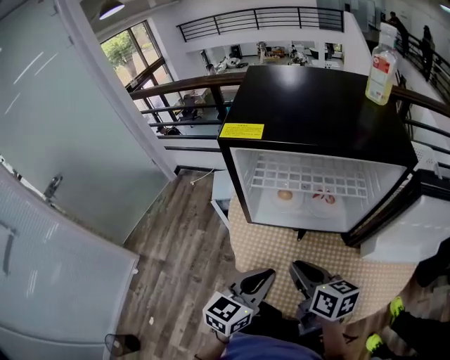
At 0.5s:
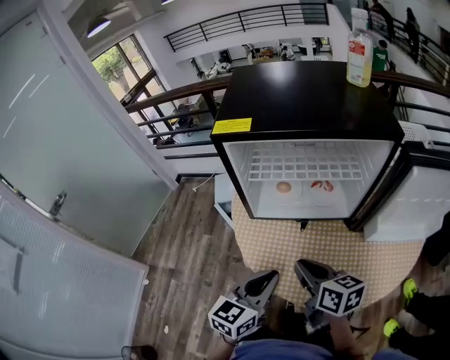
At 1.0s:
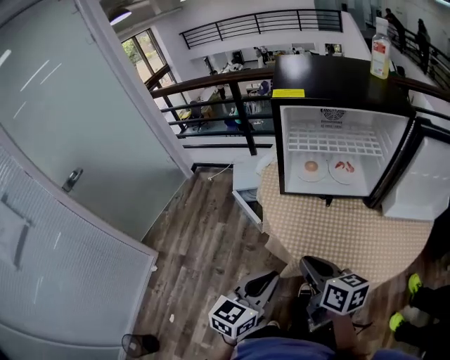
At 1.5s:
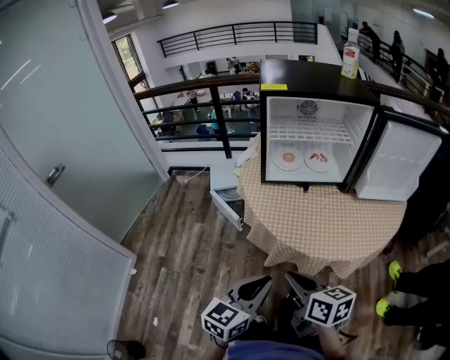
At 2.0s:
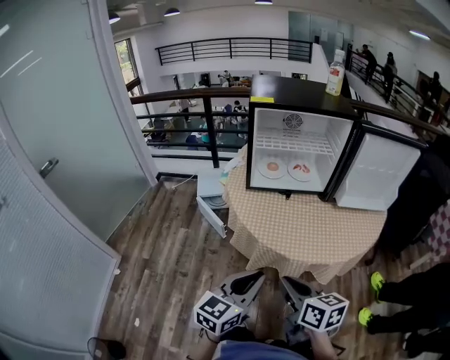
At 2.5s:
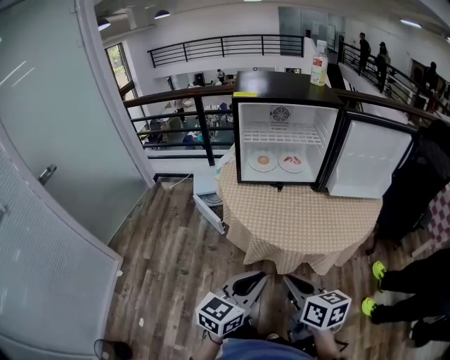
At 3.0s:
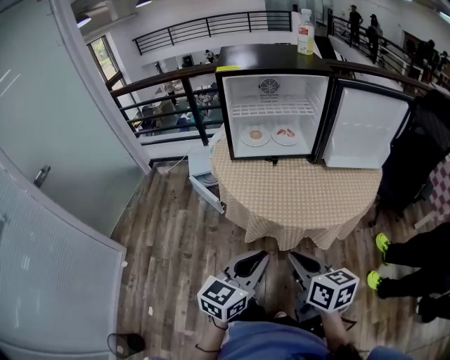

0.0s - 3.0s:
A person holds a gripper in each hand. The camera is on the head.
0.0s - 1.5s: The two grippers go some 30 cm backward and to the left.
1.5s - 3.0s: The right gripper shifts roughly 10 cm to the right and backward, while the left gripper shifts about 10 cm to the right.

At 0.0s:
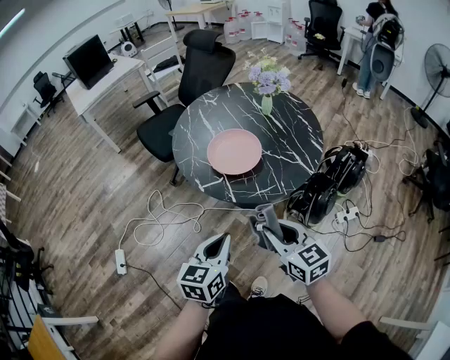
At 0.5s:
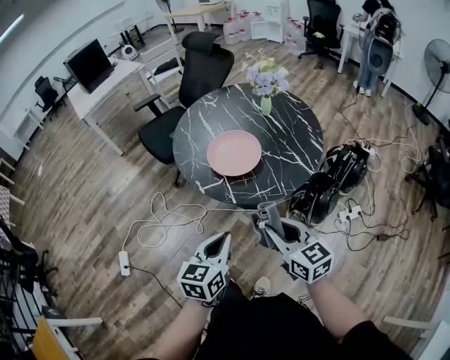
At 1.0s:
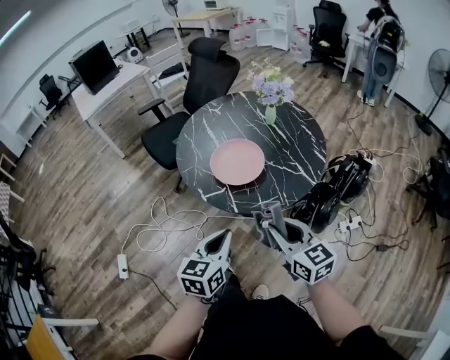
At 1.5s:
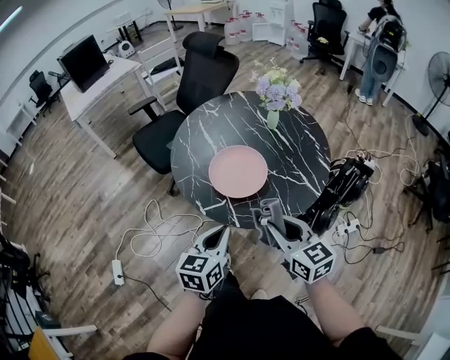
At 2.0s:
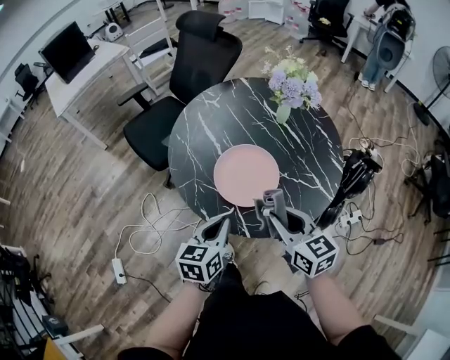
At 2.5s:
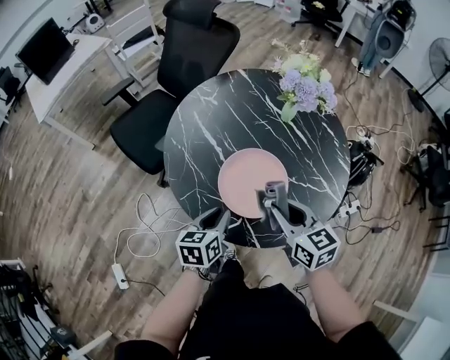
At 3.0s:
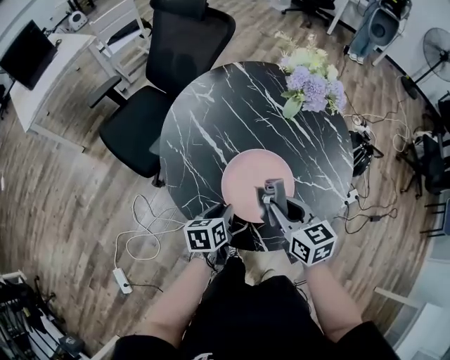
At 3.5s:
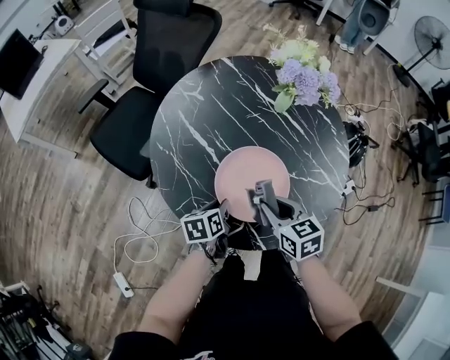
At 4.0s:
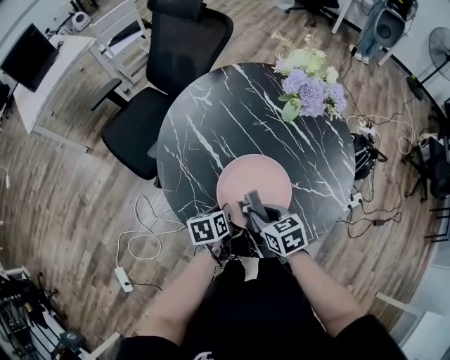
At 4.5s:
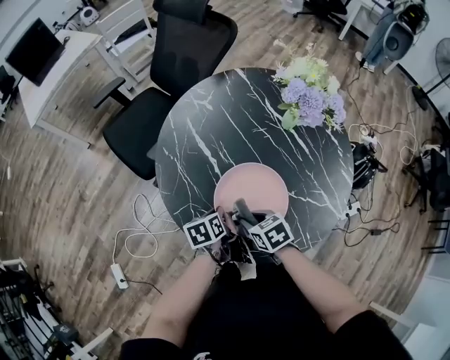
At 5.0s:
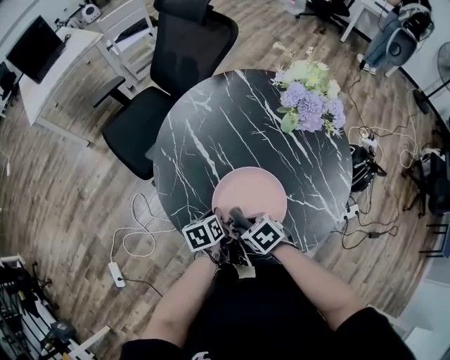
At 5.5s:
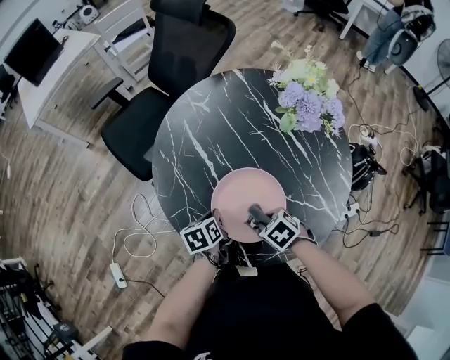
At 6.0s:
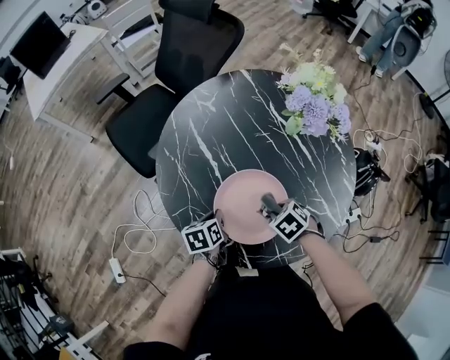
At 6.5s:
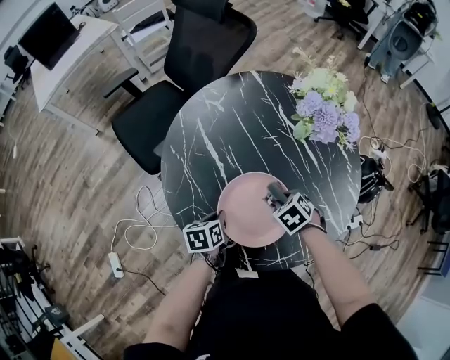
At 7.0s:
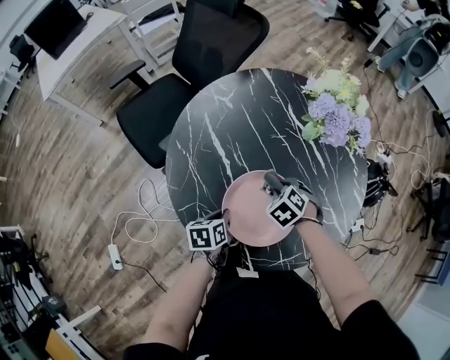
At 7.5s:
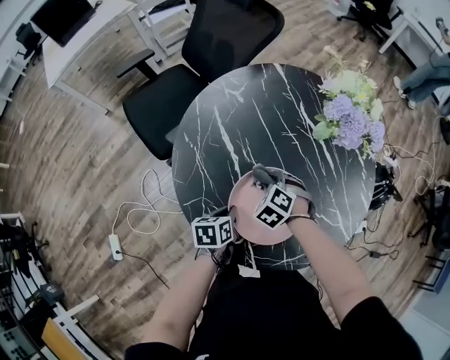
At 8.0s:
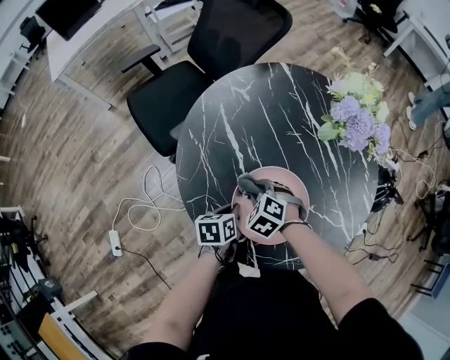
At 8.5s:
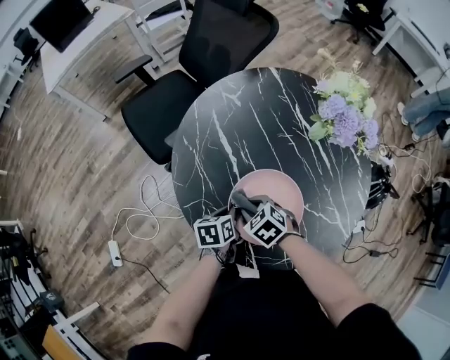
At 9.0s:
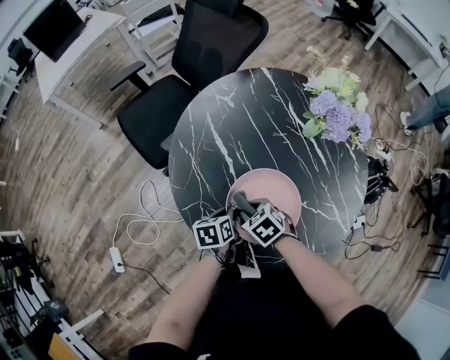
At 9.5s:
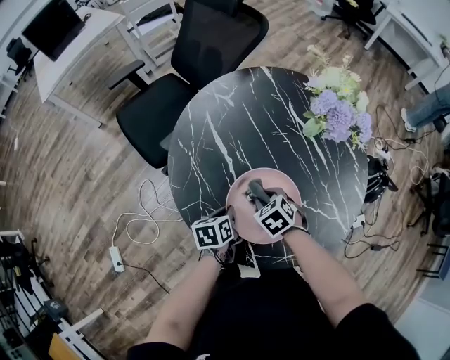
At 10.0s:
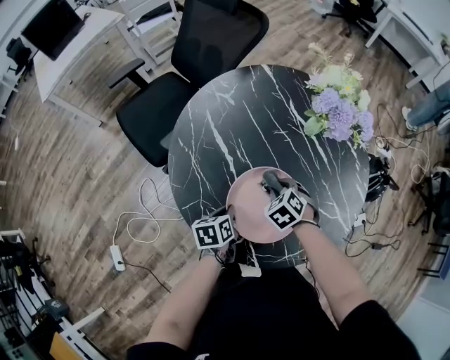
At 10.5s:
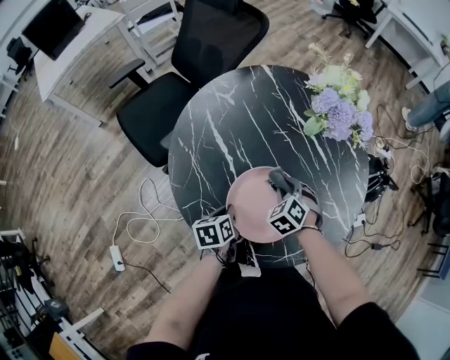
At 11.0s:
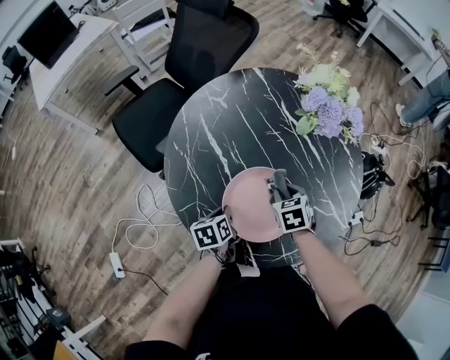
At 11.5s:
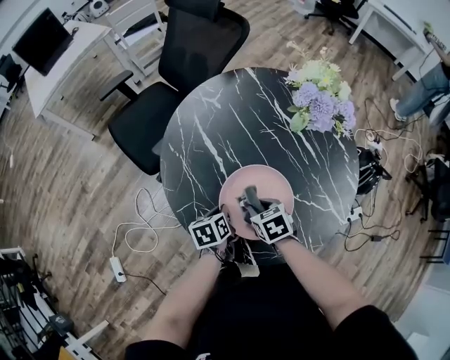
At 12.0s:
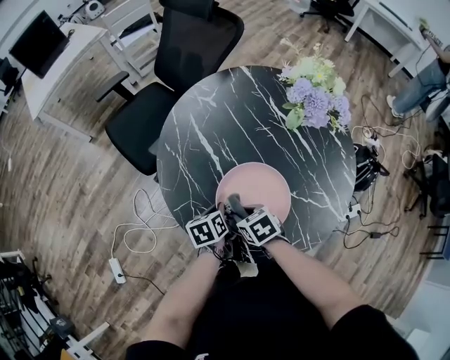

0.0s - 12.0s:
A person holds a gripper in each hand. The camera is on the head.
0.0s - 2.0s: Both grippers travel together forward, roughly 25 cm.
2.0s - 4.0s: The left gripper moves downward and forward, roughly 25 cm, and turns by some 30 degrees; the right gripper heads downward, forward and to the left, covering some 20 cm, and changes its angle by about 30 degrees.
4.0s - 6.0s: The right gripper moves about 10 cm, and changes its angle by roughly 40 degrees.
6.0s - 8.0s: The right gripper shifts by about 15 cm, and changes its angle by some 30 degrees.
8.0s - 10.0s: The right gripper moves to the right, about 10 cm, and swivels approximately 20 degrees.
10.0s - 12.0s: The right gripper ends up roughly 15 cm from where it was, and changes its angle by approximately 30 degrees.

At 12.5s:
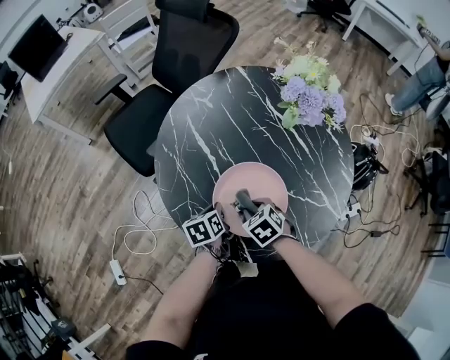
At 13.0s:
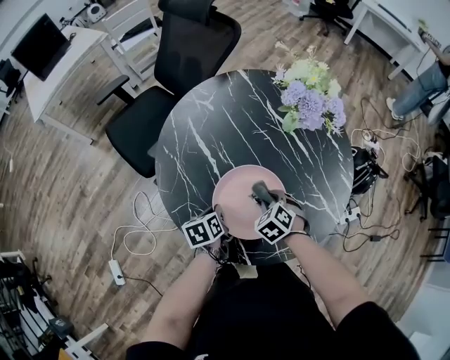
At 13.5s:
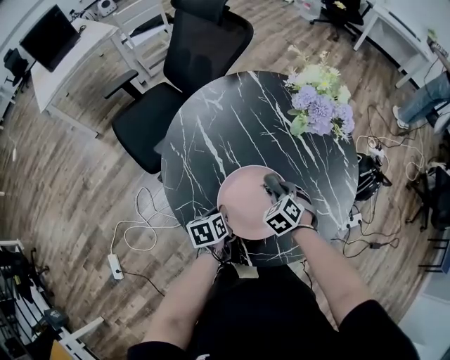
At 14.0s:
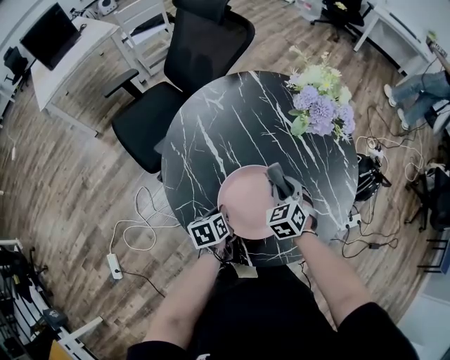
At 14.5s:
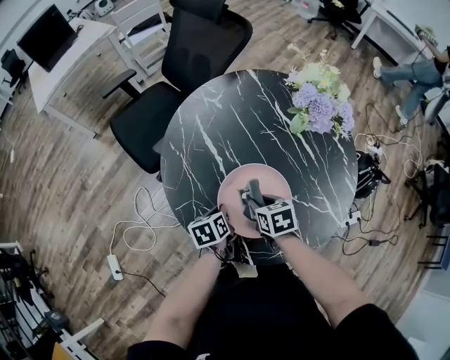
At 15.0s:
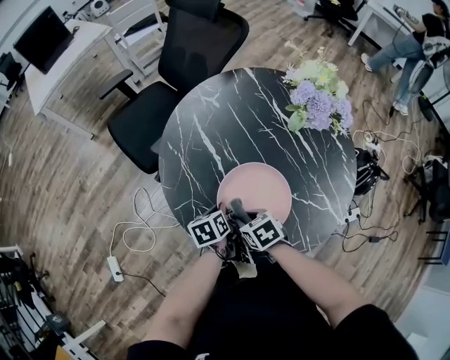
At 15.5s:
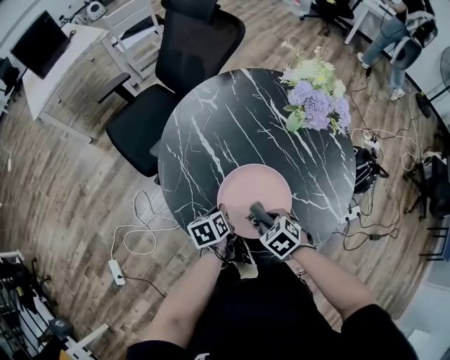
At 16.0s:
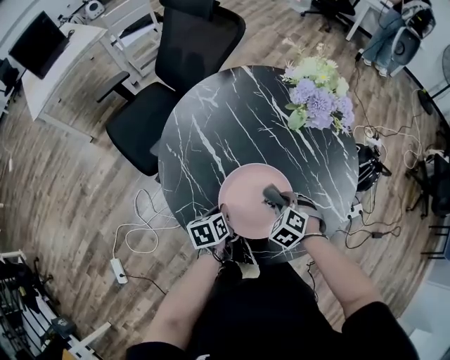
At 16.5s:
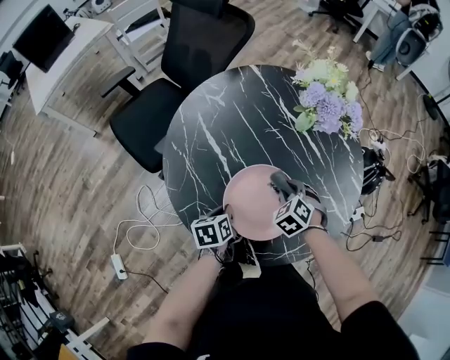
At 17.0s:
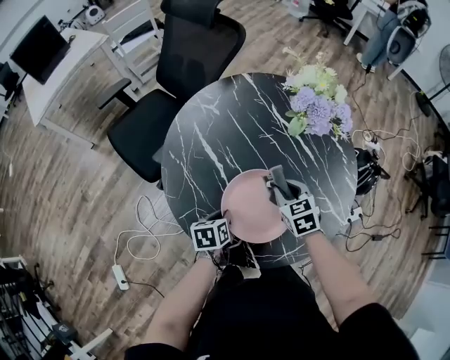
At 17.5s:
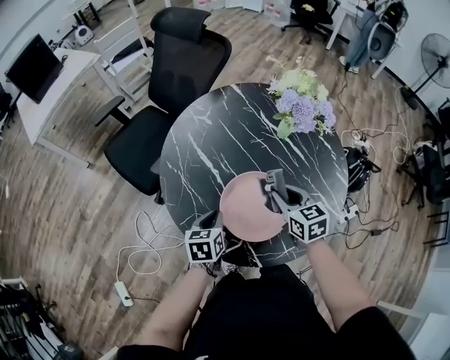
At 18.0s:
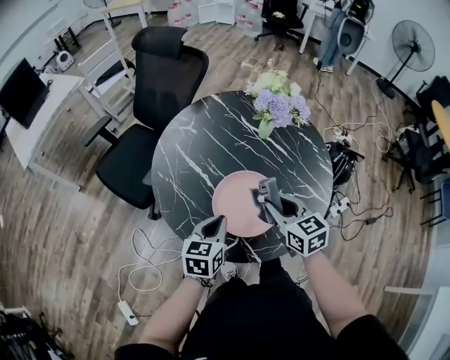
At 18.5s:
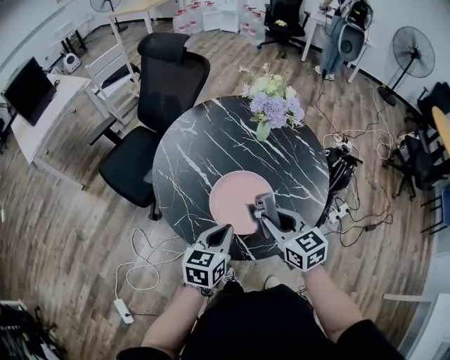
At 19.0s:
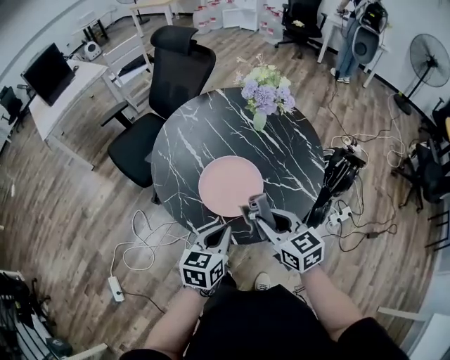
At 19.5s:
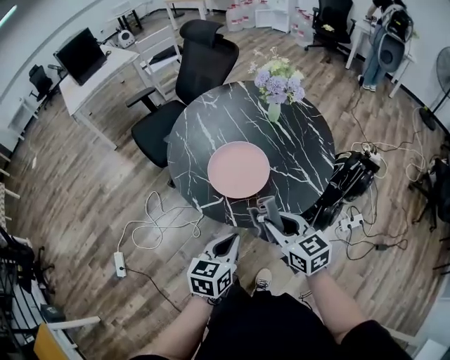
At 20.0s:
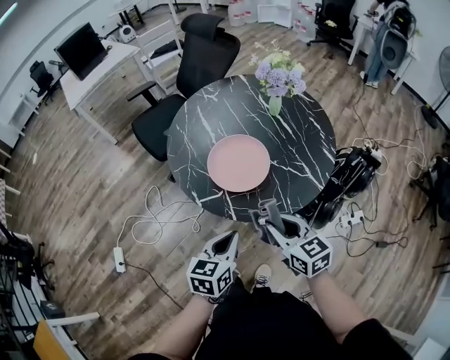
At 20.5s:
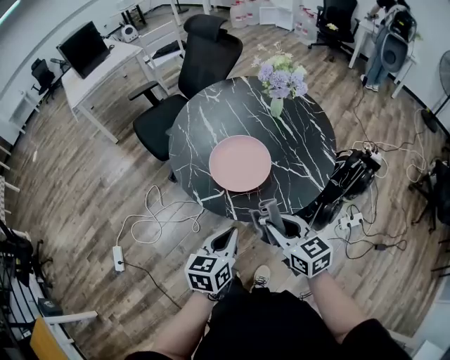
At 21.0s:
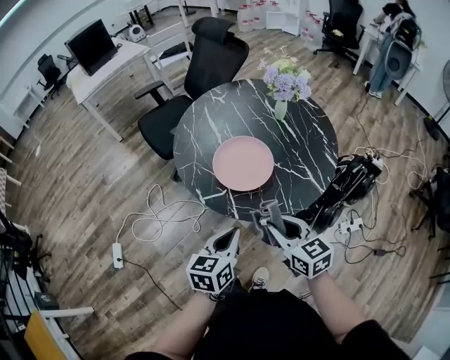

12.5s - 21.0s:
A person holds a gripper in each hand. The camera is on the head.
12.5s - 14.5s: The right gripper swivels approximately 30 degrees.
14.5s - 16.5s: The right gripper shifts by about 10 cm, and rolls counterclockwise, seen from behind, by about 40 degrees.
16.5s - 19.0s: The left gripper goes approximately 25 cm upward, backward and to the right, and rotates roughly 40 degrees, while the right gripper travels backward and upward by roughly 30 cm, and angles its fingers upward, by approximately 40 degrees.
19.0s - 21.0s: The two grippers go approximately 10 cm backward.

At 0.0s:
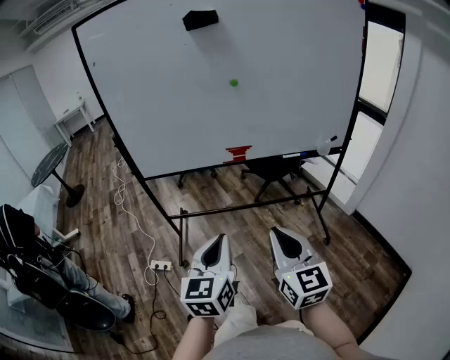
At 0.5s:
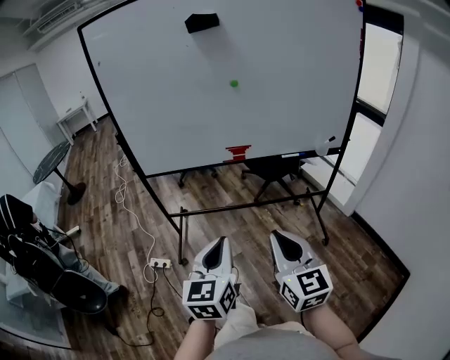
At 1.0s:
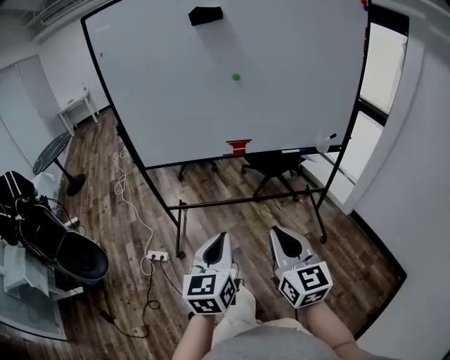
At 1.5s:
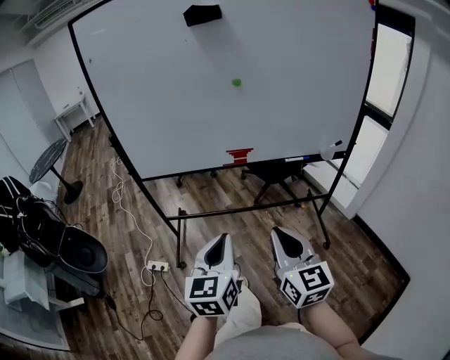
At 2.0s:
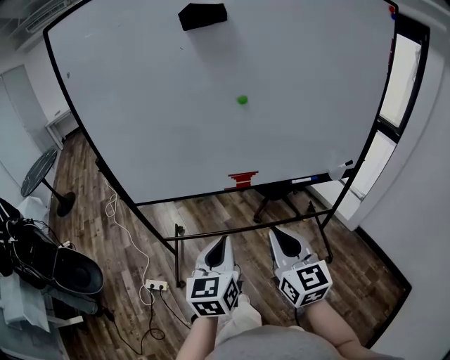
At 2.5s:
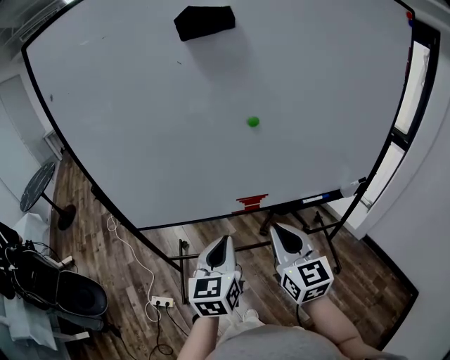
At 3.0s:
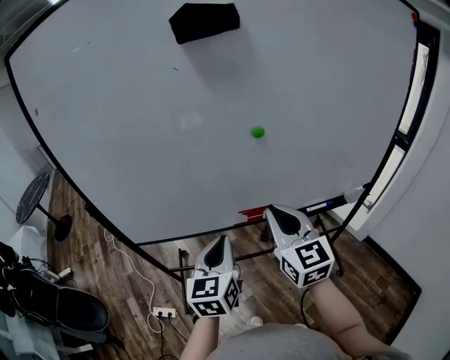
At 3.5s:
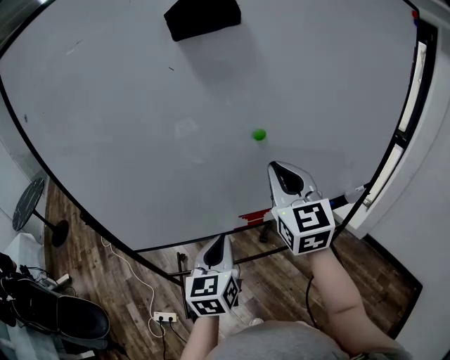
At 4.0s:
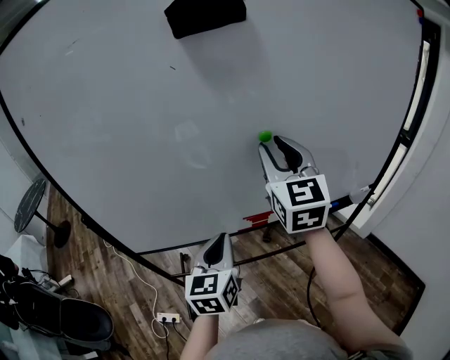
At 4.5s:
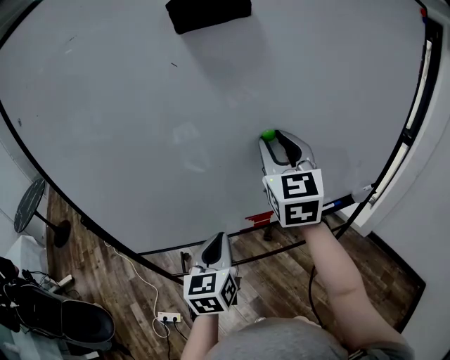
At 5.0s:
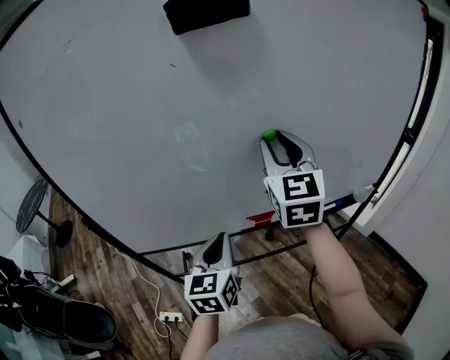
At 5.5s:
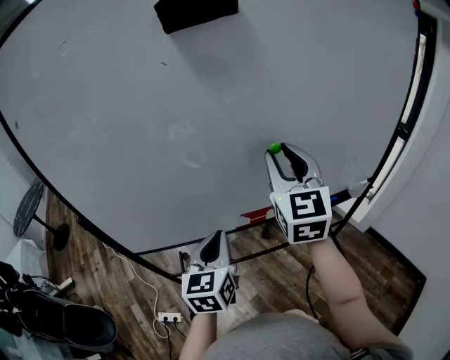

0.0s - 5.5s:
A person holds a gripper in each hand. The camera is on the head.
0.0s - 2.0s: Both grippers move forward, roughly 20 cm.
2.0s - 3.5s: The right gripper is displaced forward and upward by approximately 30 cm; the left gripper heads forward, covering about 20 cm.
3.5s - 5.5s: The right gripper opens.
